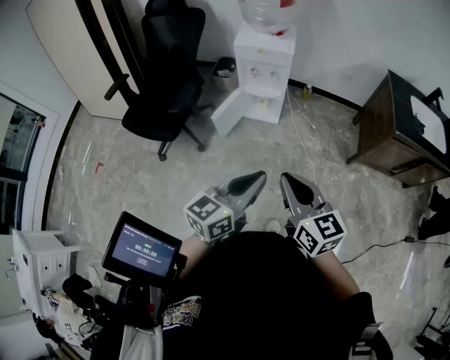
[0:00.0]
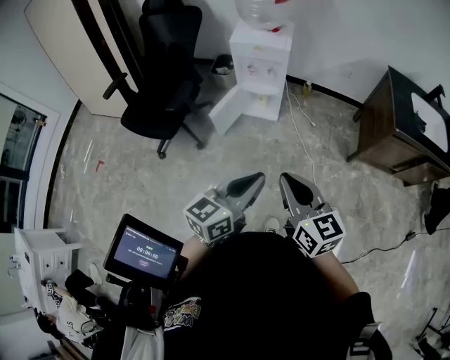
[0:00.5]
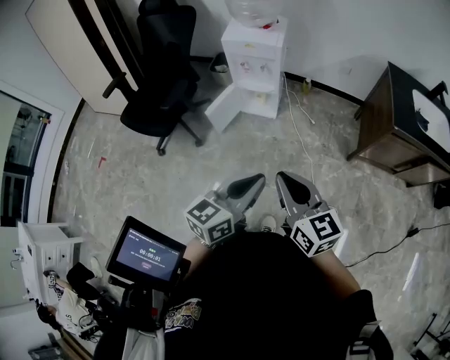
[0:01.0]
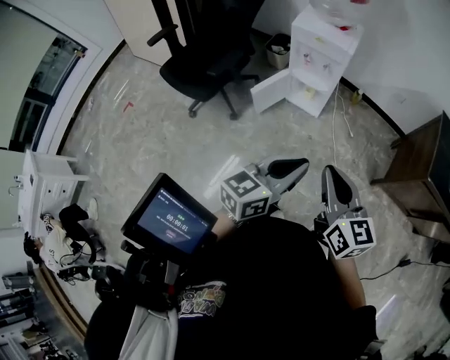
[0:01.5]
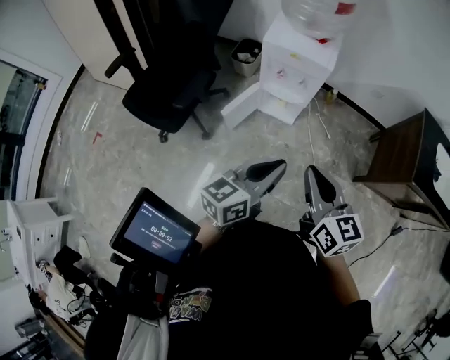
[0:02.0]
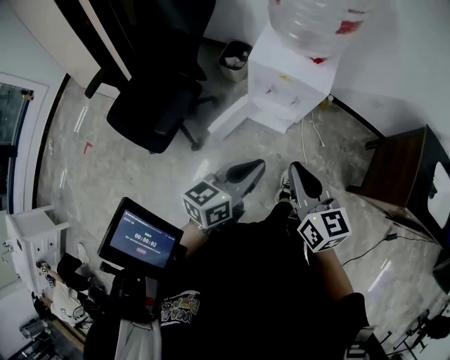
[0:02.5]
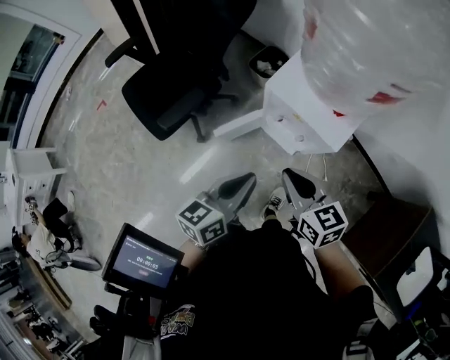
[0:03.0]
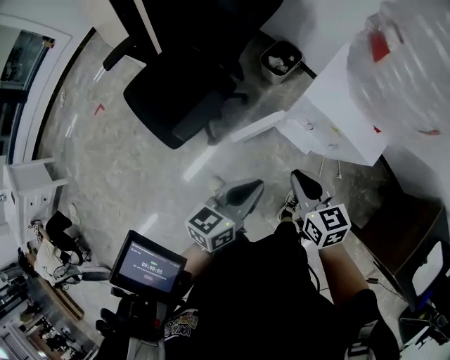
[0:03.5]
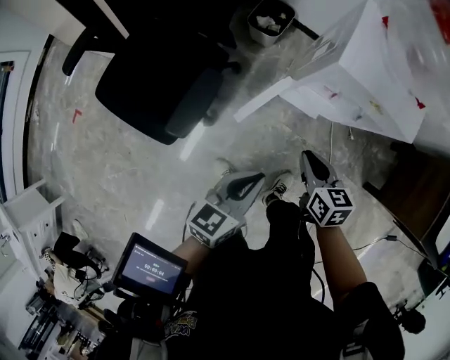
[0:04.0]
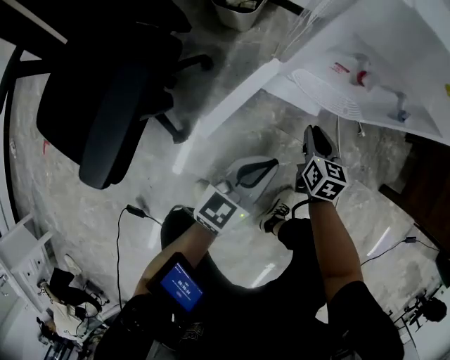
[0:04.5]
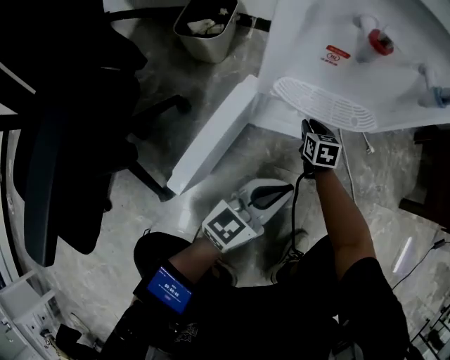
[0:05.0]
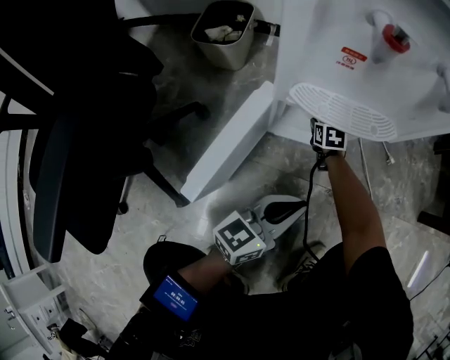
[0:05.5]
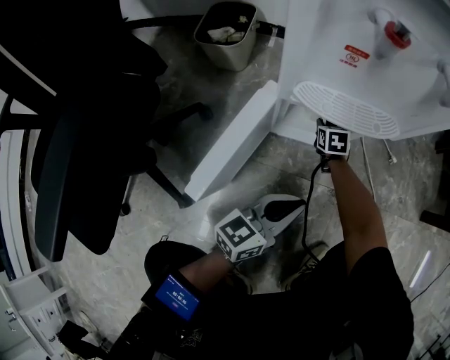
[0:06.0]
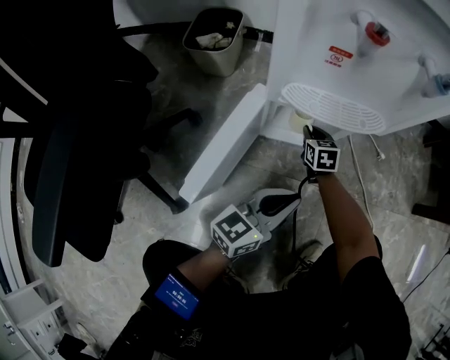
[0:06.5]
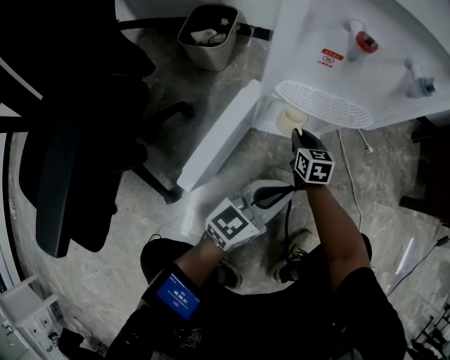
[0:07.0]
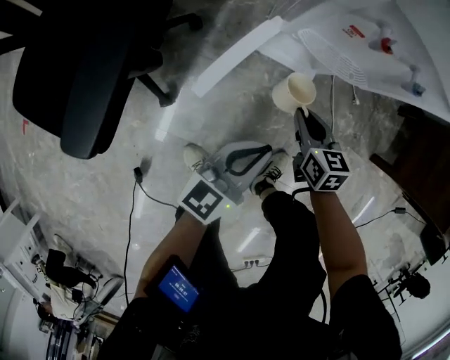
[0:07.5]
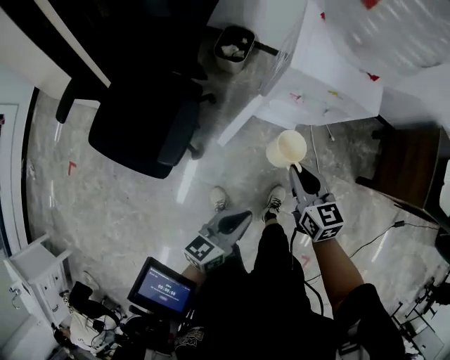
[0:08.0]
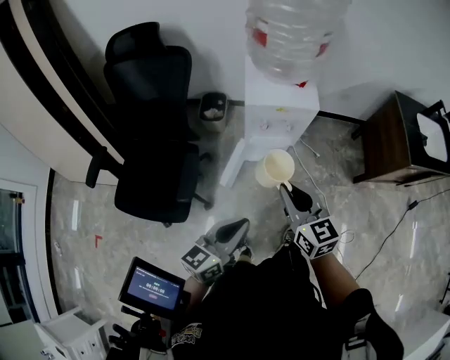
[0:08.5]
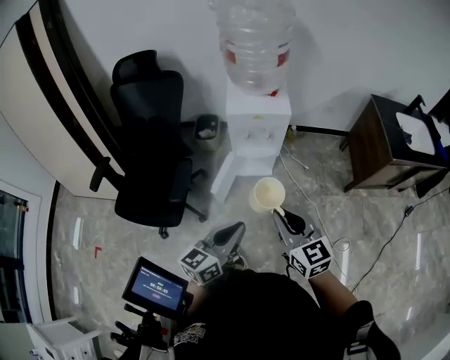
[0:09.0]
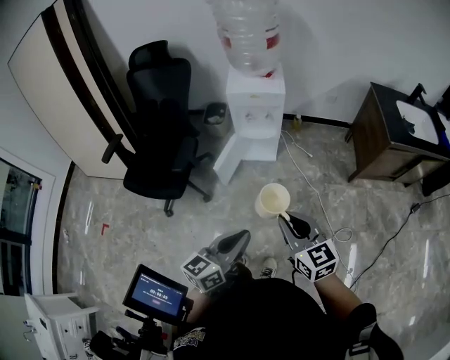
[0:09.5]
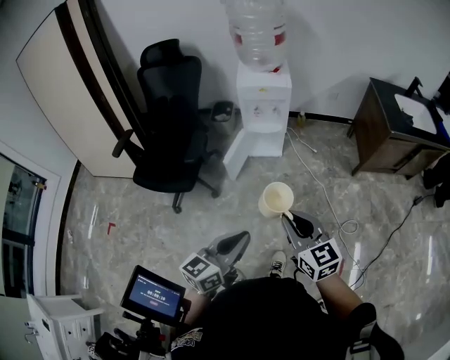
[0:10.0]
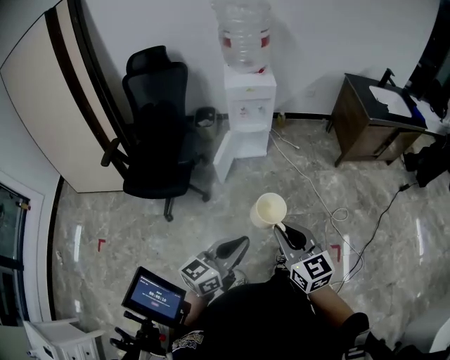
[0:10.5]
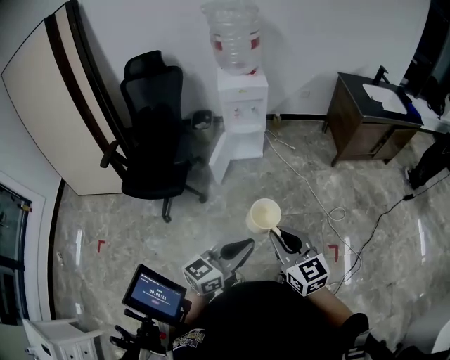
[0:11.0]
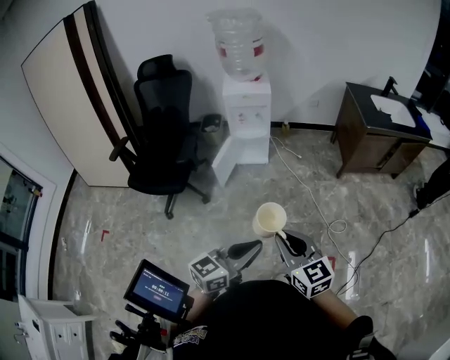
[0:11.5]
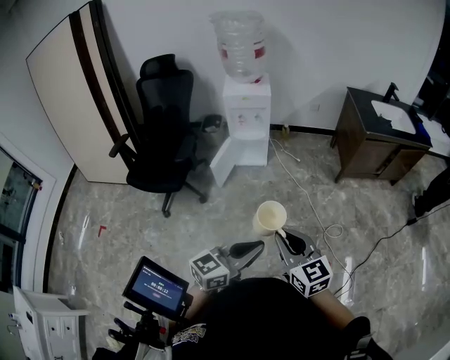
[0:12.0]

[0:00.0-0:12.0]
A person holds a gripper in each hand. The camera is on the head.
0:00.0 to 0:02.0: Both grippers move forward, roughly 20 cm.
0:02.0 to 0:04.0: The right gripper travels downward by about 30 cm, and swivels roughly 30 degrees, while the left gripper changes place by some 30 cm.
0:04.0 to 0:06.0: The grippers both shift downward by approximately 50 cm. The left gripper turns by some 30 degrees; the right gripper rotates some 30 degrees.
0:06.0 to 0:08.0: The right gripper shifts roughly 70 cm upward and backward, and rotates roughly 30 degrees. Meanwhile the left gripper travels upward and backward by roughly 40 cm.
0:08.0 to 0:10.0: Both grippers move backward and upward, about 40 cm.
0:10.0 to 0:12.0: The right gripper is displaced backward and to the right by roughly 15 cm. Meanwhile the left gripper heads to the right and backward, covering roughly 15 cm.

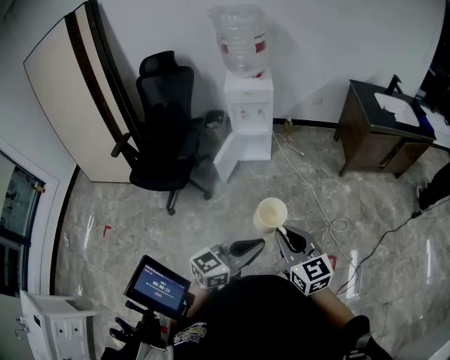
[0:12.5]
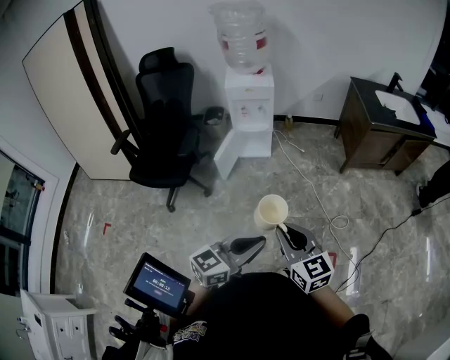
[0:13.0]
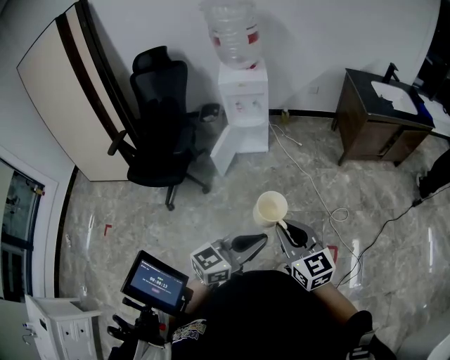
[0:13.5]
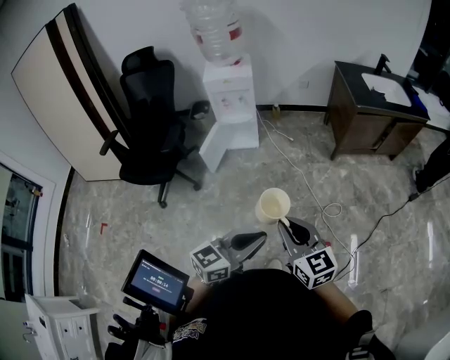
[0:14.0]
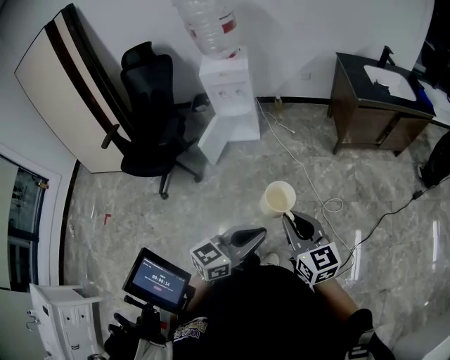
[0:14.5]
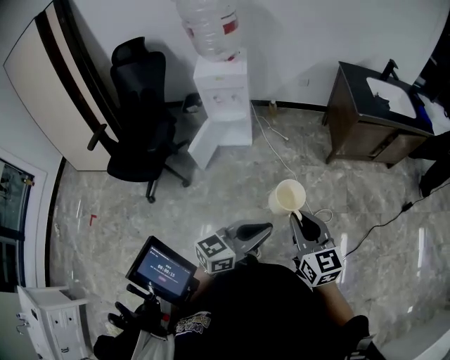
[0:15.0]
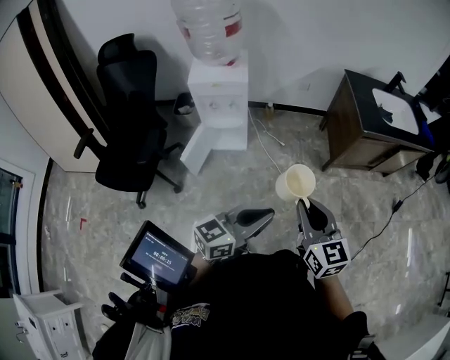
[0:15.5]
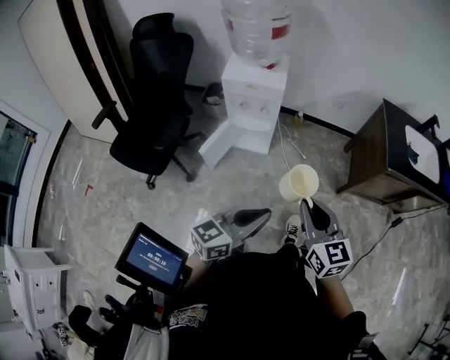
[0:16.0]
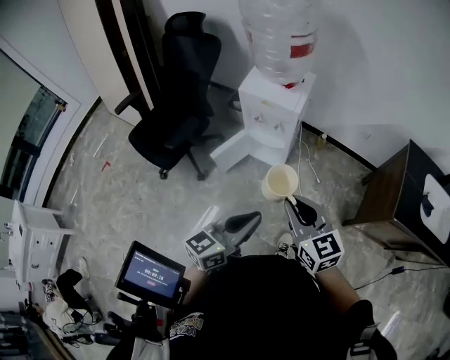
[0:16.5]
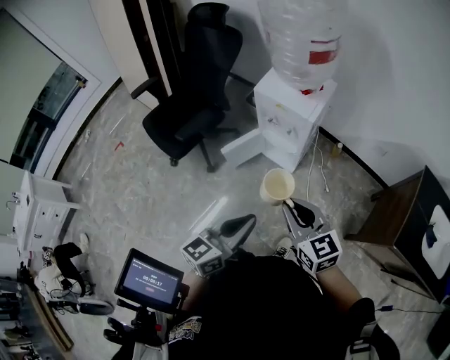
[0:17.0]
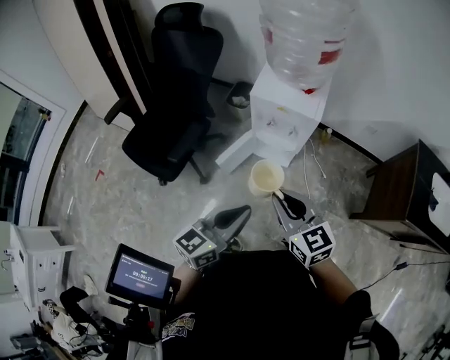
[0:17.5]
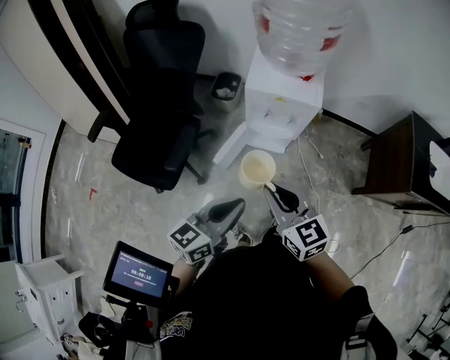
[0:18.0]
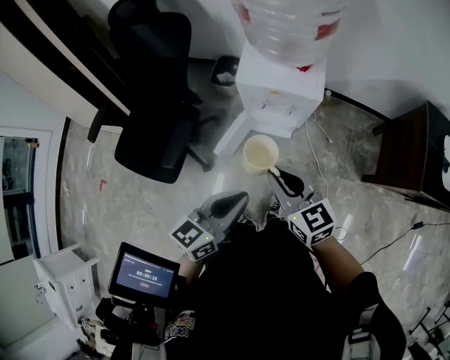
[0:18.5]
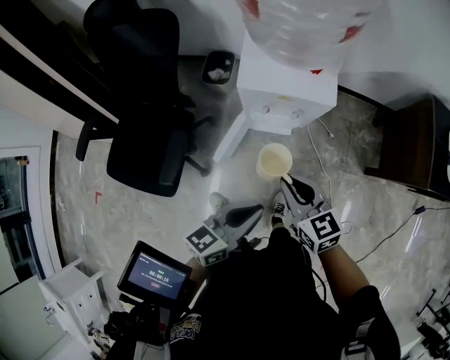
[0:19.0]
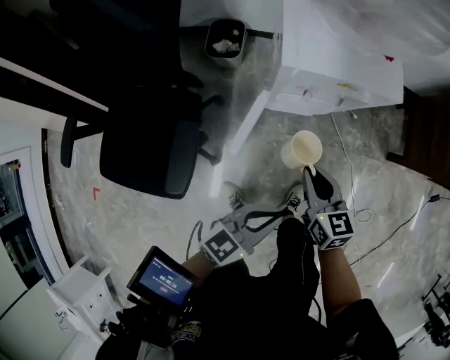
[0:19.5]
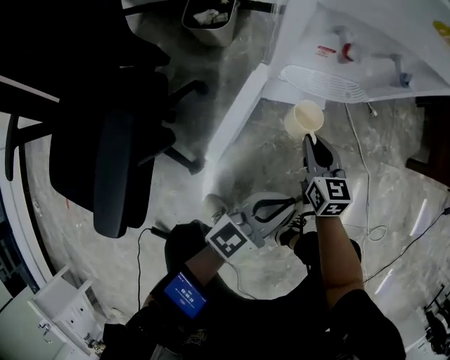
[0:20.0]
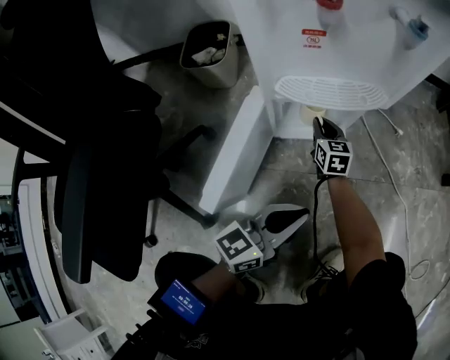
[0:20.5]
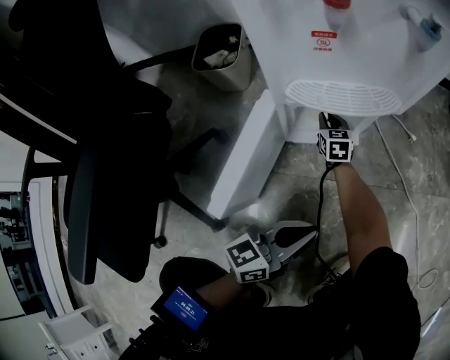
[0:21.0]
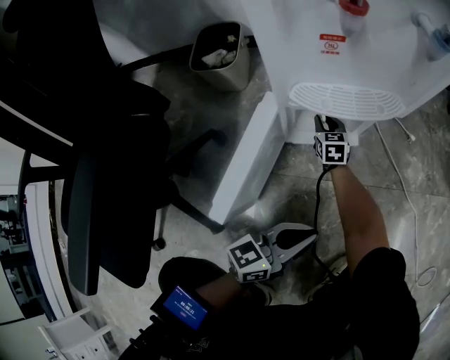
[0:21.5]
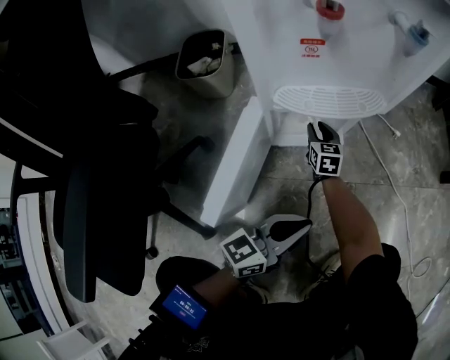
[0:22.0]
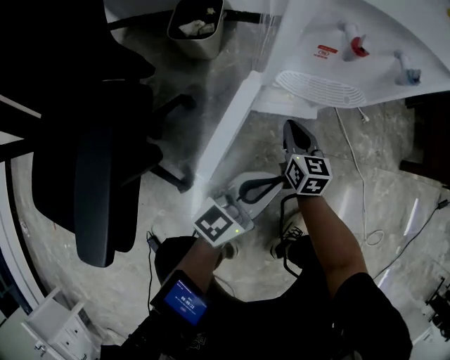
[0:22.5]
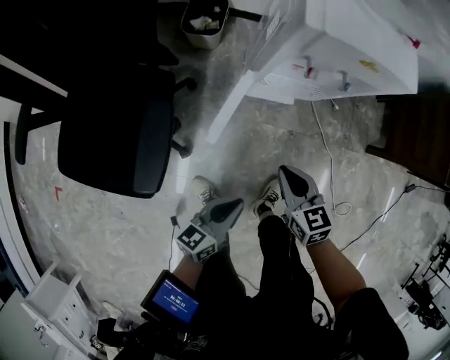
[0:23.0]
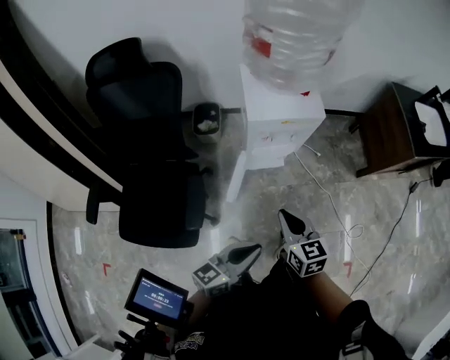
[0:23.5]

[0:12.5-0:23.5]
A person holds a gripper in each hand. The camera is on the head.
0:12.5 to 0:14.5: Both grippers travel together to the right, about 15 cm.
0:14.5 to 0:16.0: Both grippers move forward, roughly 30 cm.
0:16.0 to 0:18.0: The left gripper changes place by about 25 cm. Meanwhile the right gripper changes place by approximately 30 cm.
0:18.0 to 0:20.0: Both grippers move downward, roughly 50 cm. The left gripper turns by approximately 20 degrees, while the right gripper swivels roughly 30 degrees.
0:20.0 to 0:21.5: The left gripper is displaced downward by approximately 15 cm; the right gripper is displaced downward and forward by some 35 cm.
0:21.5 to 0:23.5: The left gripper goes about 50 cm upward. The right gripper heads upward and backward, covering about 80 cm.

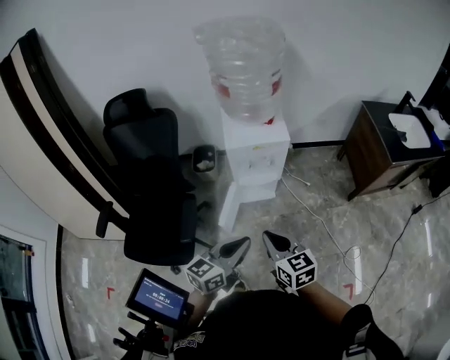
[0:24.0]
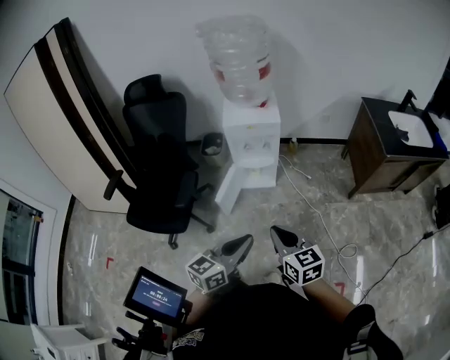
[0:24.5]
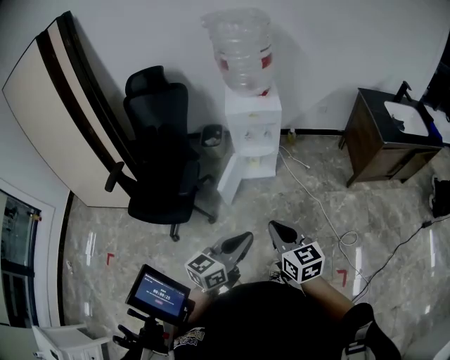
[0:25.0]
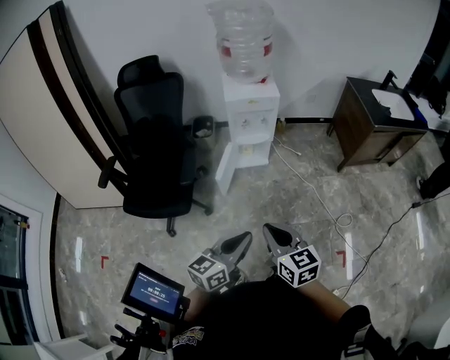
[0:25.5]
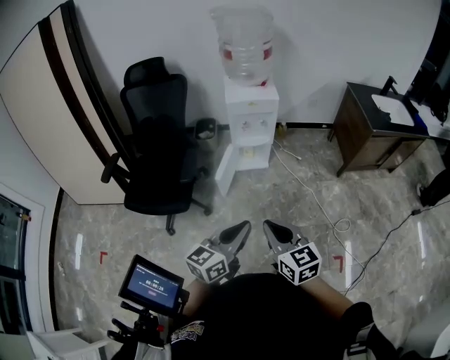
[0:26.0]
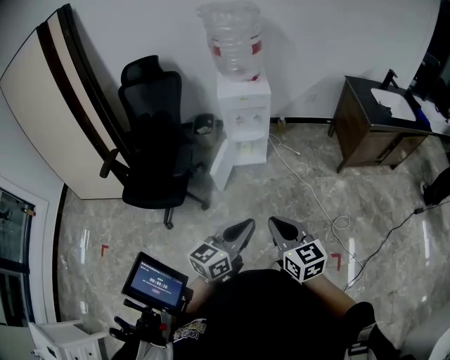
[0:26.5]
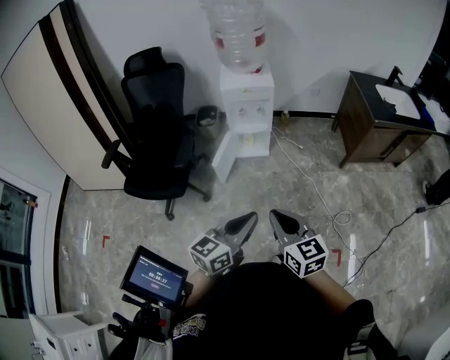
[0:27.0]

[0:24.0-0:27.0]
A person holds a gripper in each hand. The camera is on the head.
0:24.0 to 0:25.5: Both grippers move backward, some 25 cm.
0:25.5 to 0:27.0: Both grippers travel together to the right, approximately 10 cm.

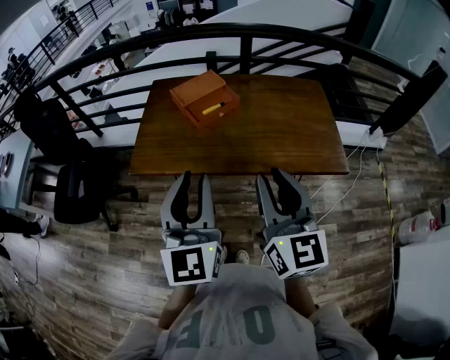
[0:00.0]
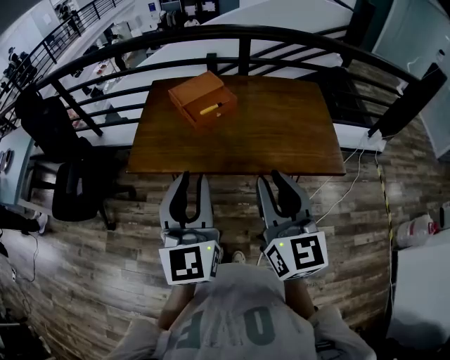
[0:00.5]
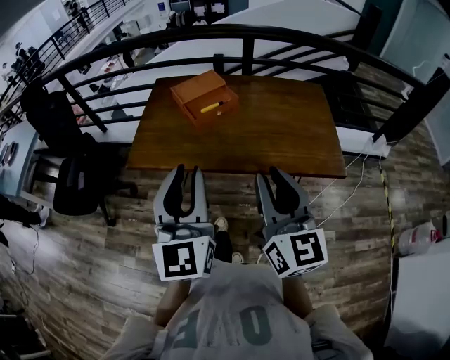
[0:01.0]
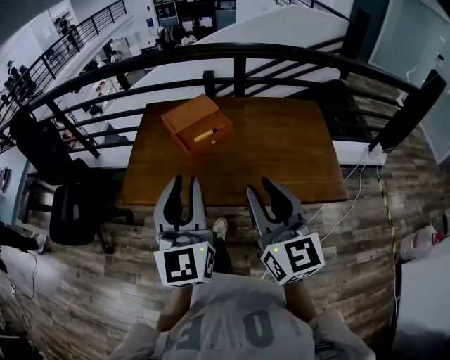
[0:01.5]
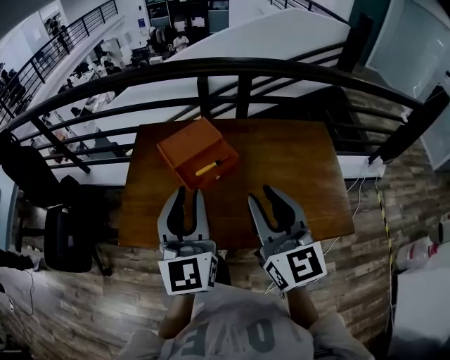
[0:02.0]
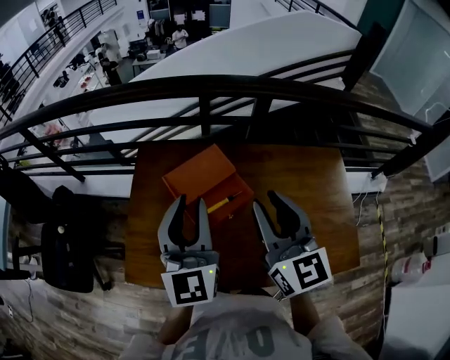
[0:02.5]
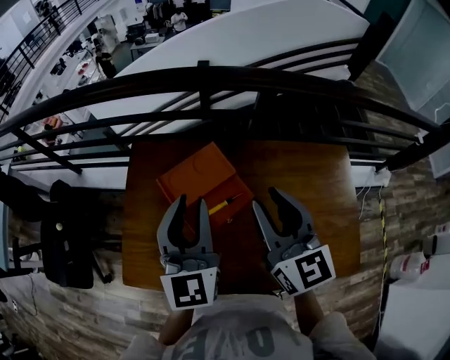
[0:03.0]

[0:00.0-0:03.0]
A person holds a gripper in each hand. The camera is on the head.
0:00.0 to 0:01.5: Both grippers travel together forward, roughly 5 cm.
0:01.5 to 0:03.0: The two grippers go some 30 cm forward.
